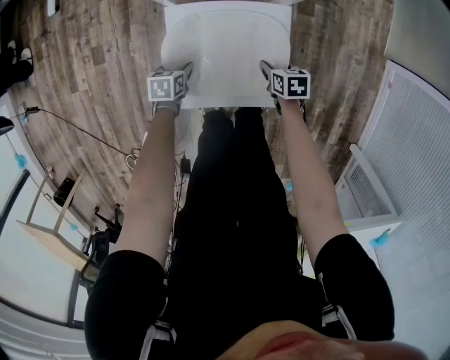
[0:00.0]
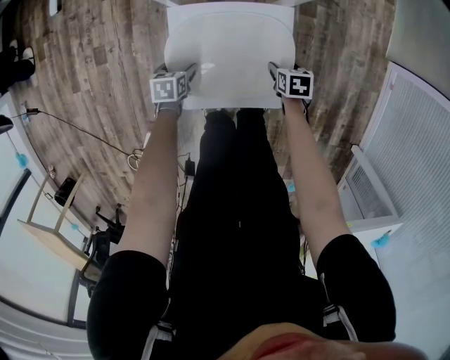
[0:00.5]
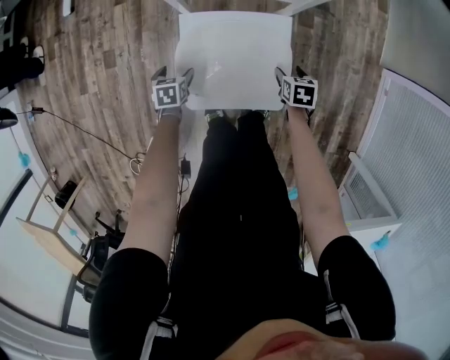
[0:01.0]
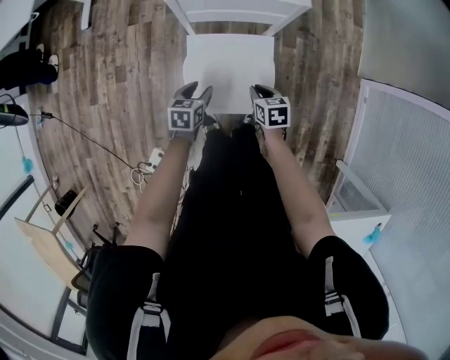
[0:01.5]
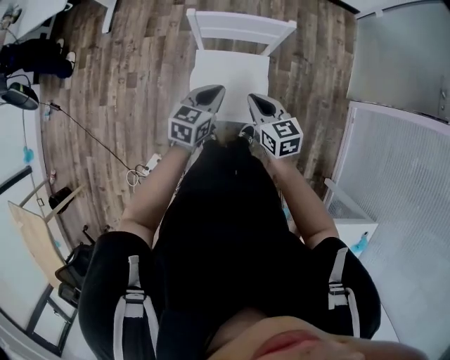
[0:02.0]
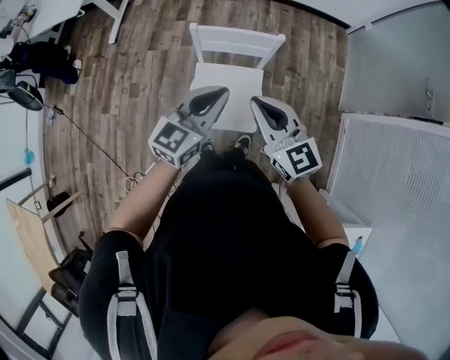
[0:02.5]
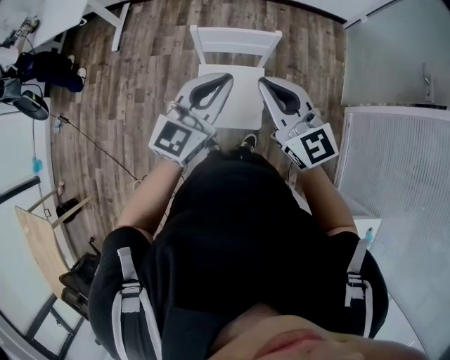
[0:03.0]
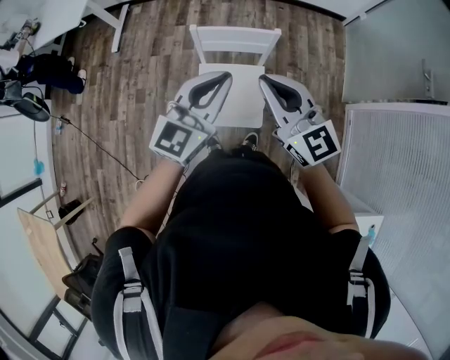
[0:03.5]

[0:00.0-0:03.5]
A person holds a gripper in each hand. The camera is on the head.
0:00.0 to 0:02.0: Both grippers travel together upward, about 50 cm. The left gripper points its fingers some 30 degrees further upward, and closes its fingers, while the right gripper angles its fingers upward, by about 30 degrees, and closes up.
0:02.0 to 0:03.5: Both grippers move upward, approximately 30 cm. The left gripper swivels approximately 30 degrees. Meanwhile the right gripper swivels approximately 40 degrees.

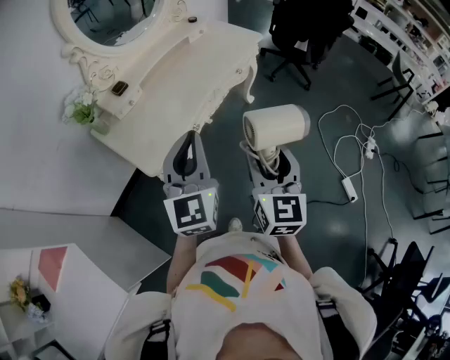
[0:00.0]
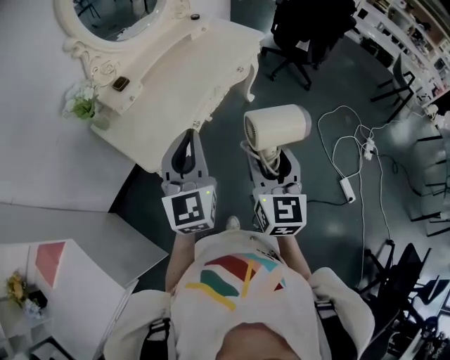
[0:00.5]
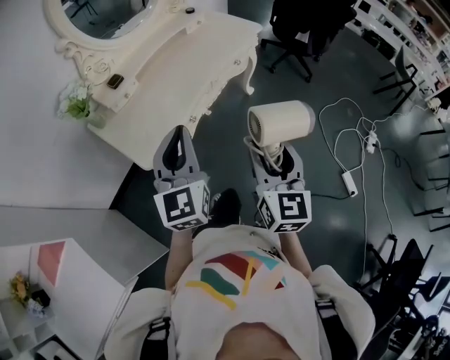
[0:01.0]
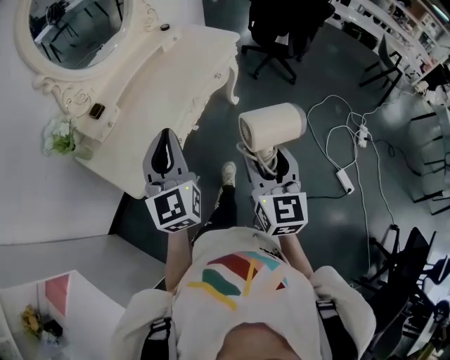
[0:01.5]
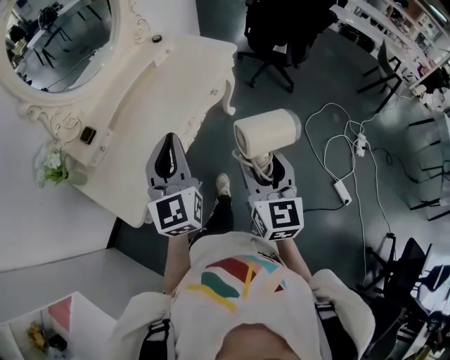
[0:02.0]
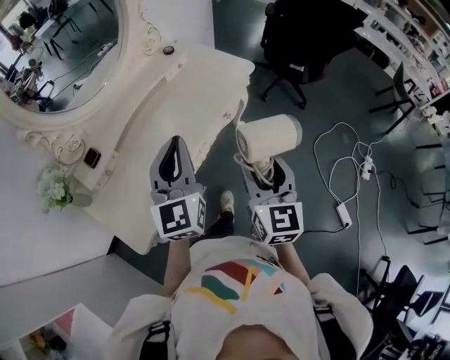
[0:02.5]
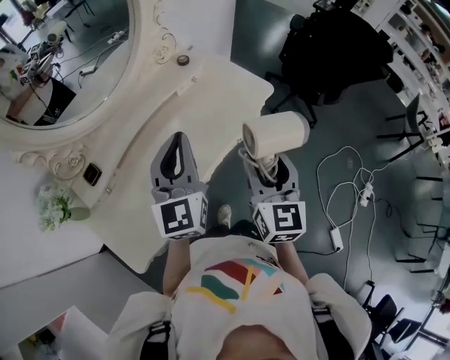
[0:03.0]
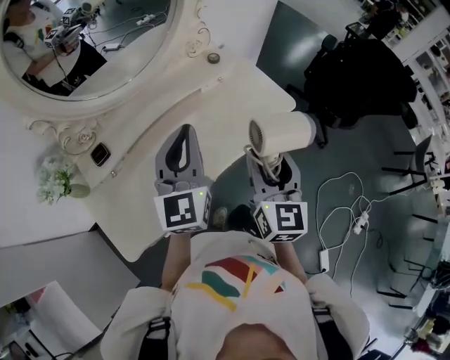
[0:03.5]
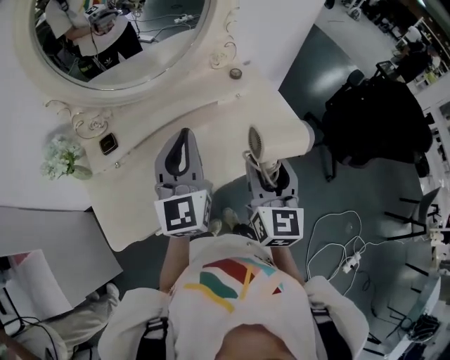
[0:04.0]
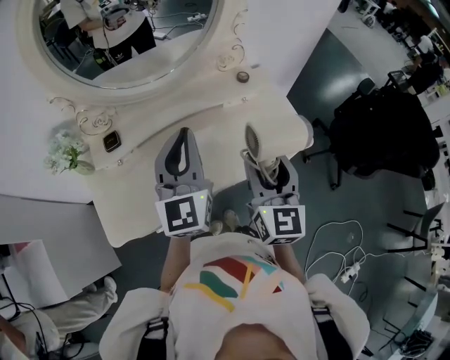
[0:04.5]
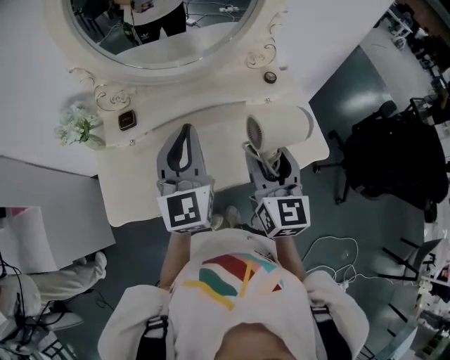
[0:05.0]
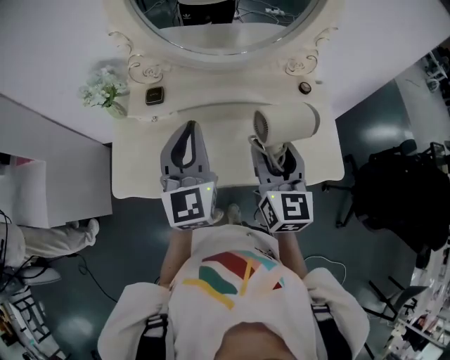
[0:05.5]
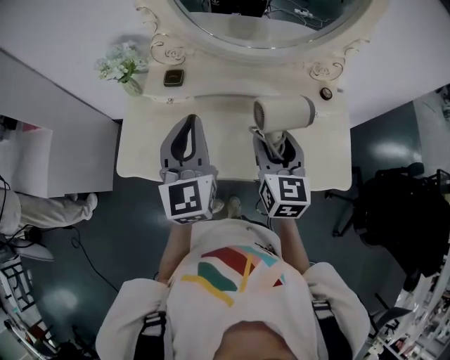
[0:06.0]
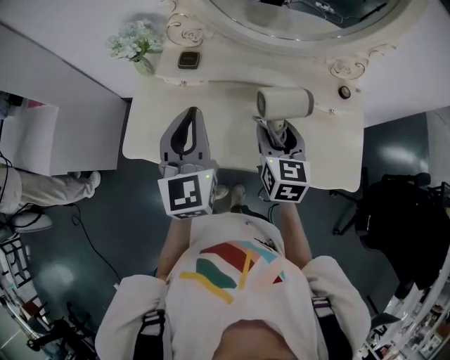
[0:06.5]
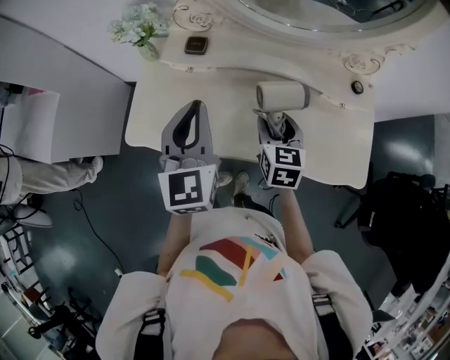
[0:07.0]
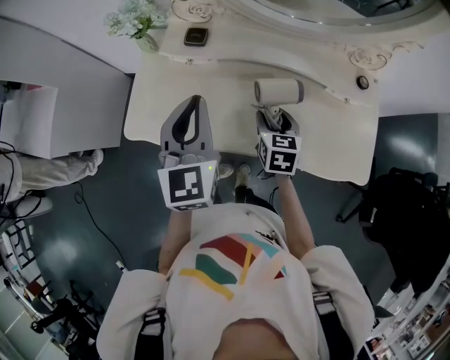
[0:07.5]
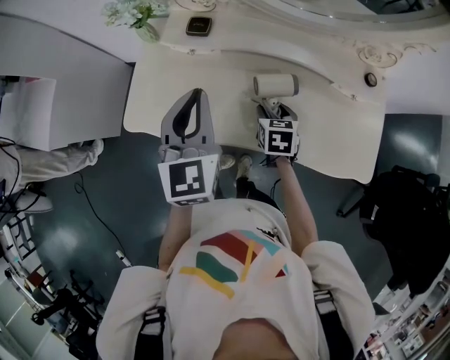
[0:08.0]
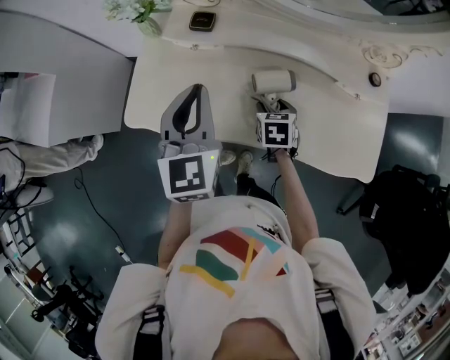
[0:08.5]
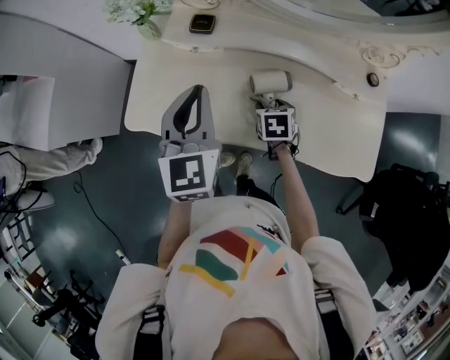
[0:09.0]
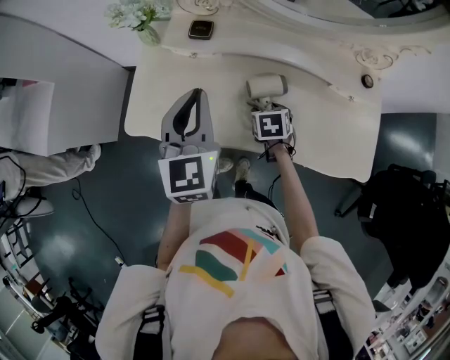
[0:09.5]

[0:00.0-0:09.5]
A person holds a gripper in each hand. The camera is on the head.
0:00.0 to 0:02.0: The right gripper moves forward and to the right, approximately 15 cm, while the left gripper heads forward, covering roughly 15 cm.
0:02.0 to 0:04.0: The left gripper shifts by some 30 cm, and swivels about 30 degrees. Meanwhile the right gripper ends up roughly 40 cm from where it was, and changes its angle by roughly 30 degrees.
0:04.0 to 0:05.5: The left gripper ends up some 10 cm from where it was, and turns by roughly 30 degrees. Meanwhile the right gripper moves approximately 10 cm, and rotates some 30 degrees.
0:05.5 to 0:07.5: The left gripper moves to the left and downward, some 10 cm, while the right gripper shifts about 20 cm downward, and points its fingers some 30 degrees further downward.
0:07.5 to 0:09.5: The right gripper shifts some 10 cm downward, and swivels some 20 degrees.

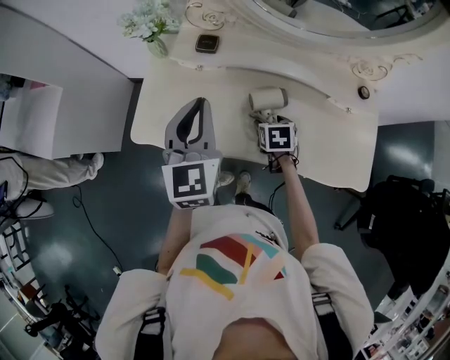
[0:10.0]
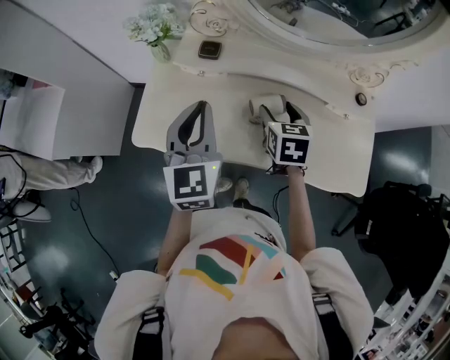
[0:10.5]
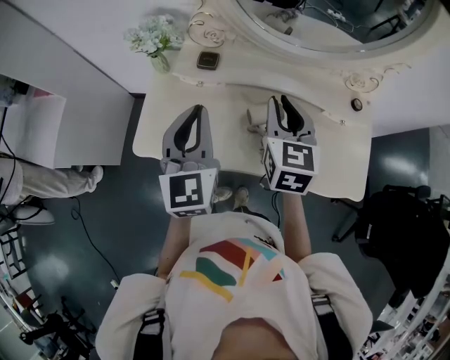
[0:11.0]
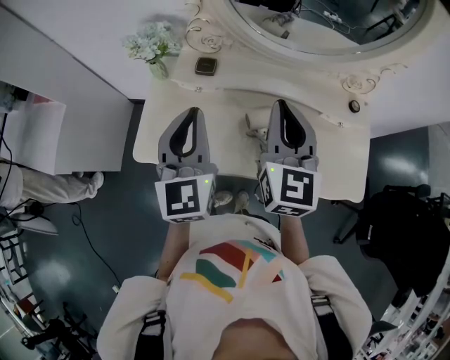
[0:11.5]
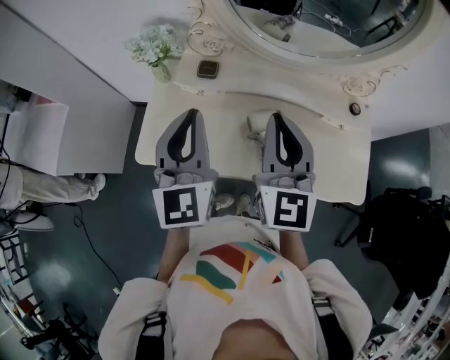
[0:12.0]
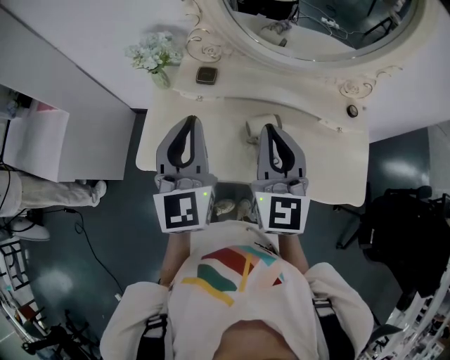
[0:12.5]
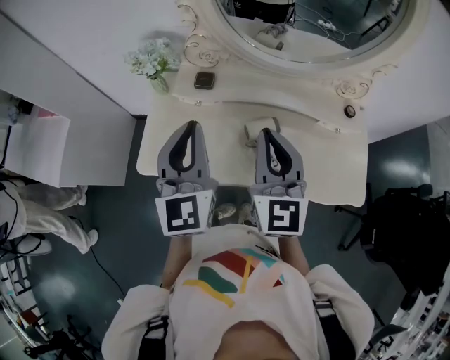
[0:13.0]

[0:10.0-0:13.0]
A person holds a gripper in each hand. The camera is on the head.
0:10.0 to 0:11.5: The right gripper shifts some 35 cm upward, tilts its fingers roughly 60 degrees upward, and closes its fingers, while the left gripper travels upward by approximately 5 cm.
0:11.5 to 0:13.0: The right gripper changes place by roughly 5 cm.

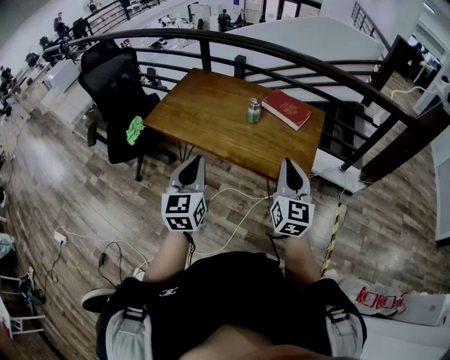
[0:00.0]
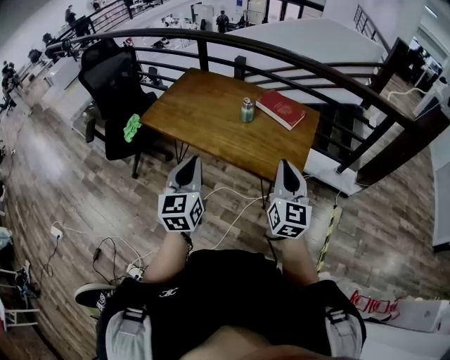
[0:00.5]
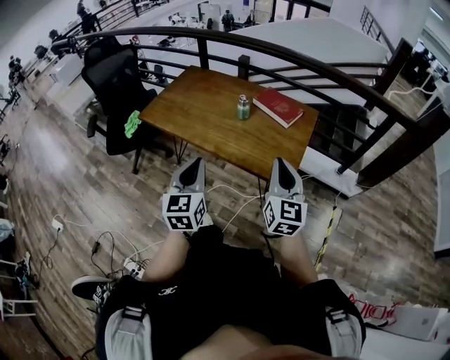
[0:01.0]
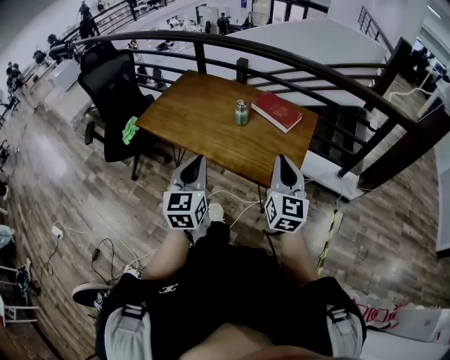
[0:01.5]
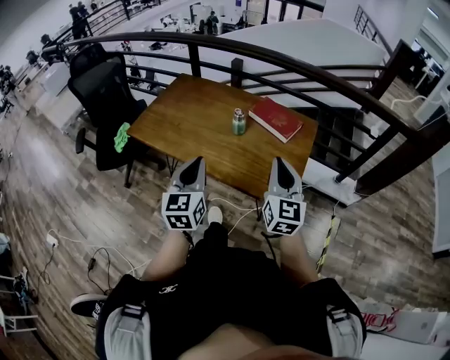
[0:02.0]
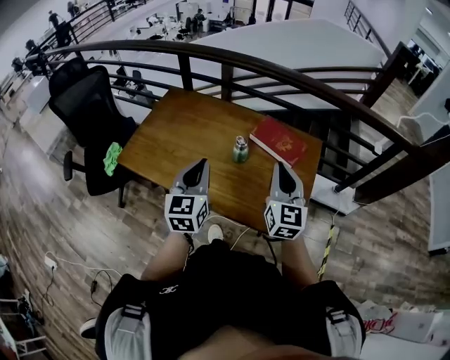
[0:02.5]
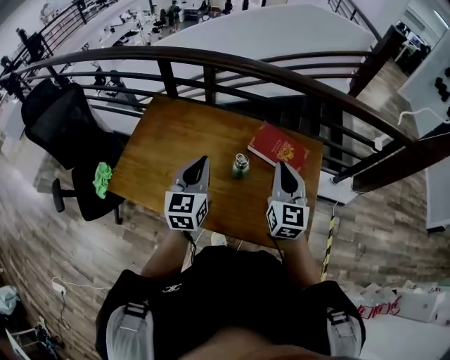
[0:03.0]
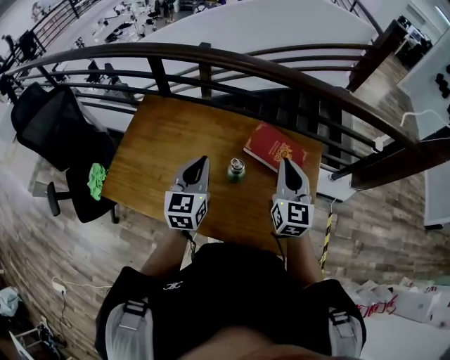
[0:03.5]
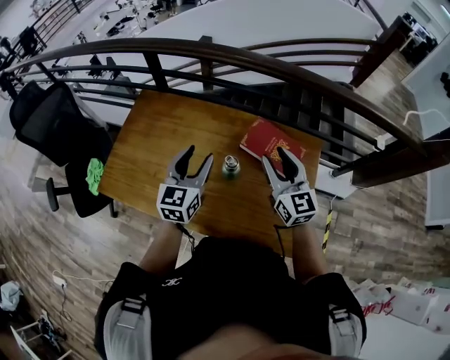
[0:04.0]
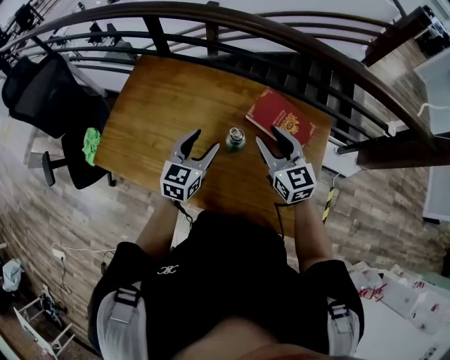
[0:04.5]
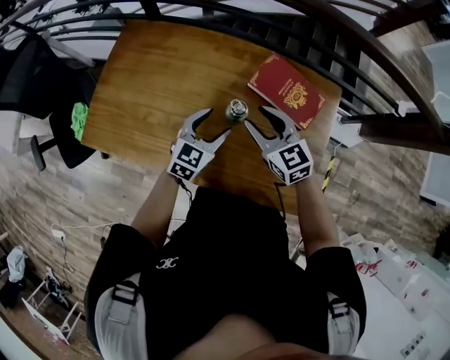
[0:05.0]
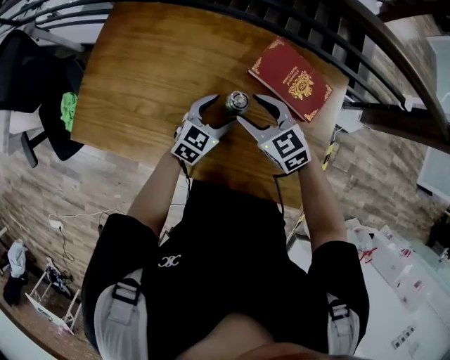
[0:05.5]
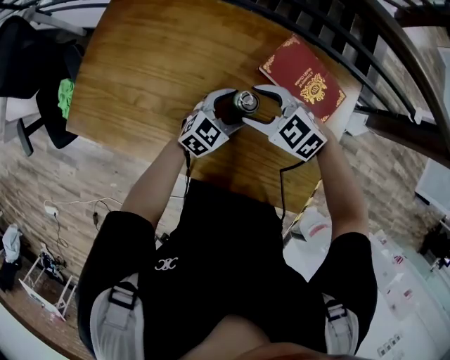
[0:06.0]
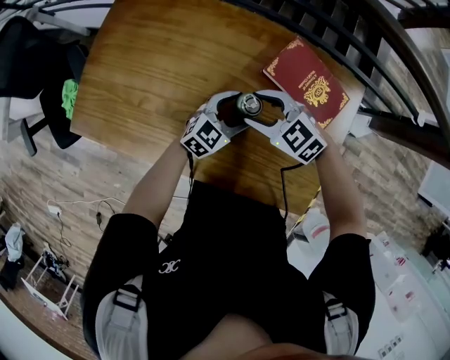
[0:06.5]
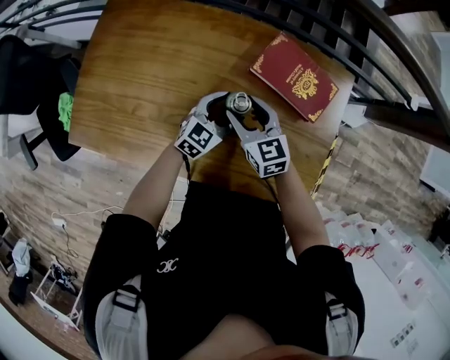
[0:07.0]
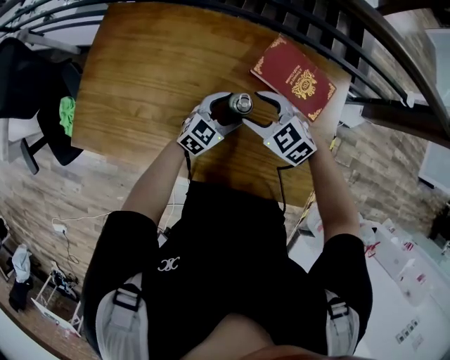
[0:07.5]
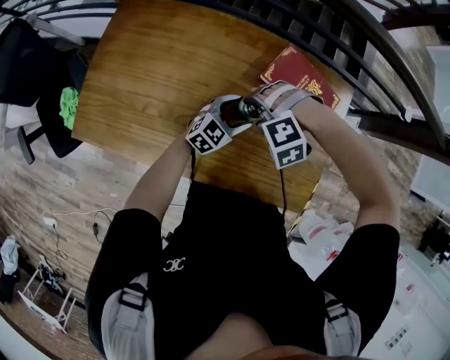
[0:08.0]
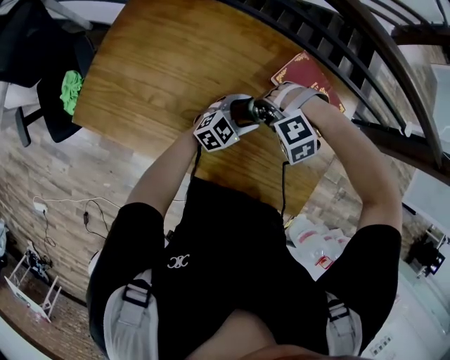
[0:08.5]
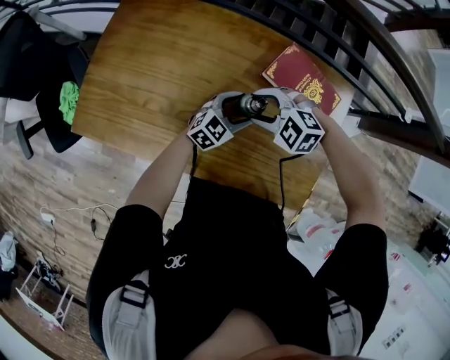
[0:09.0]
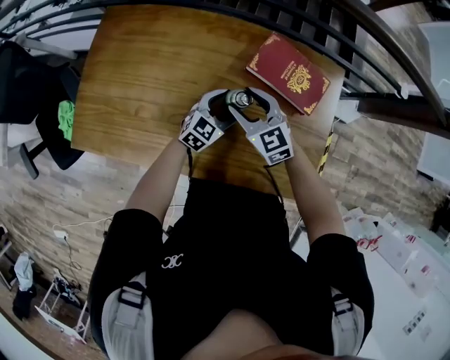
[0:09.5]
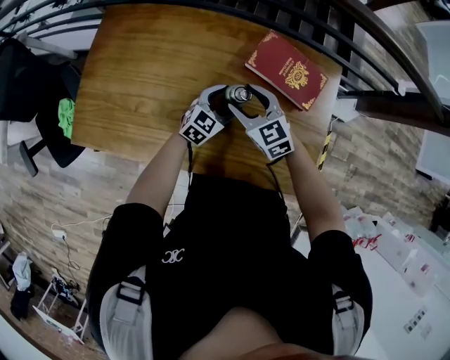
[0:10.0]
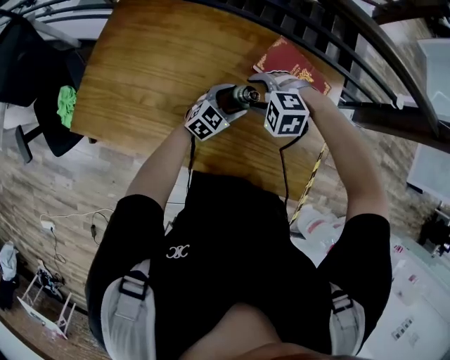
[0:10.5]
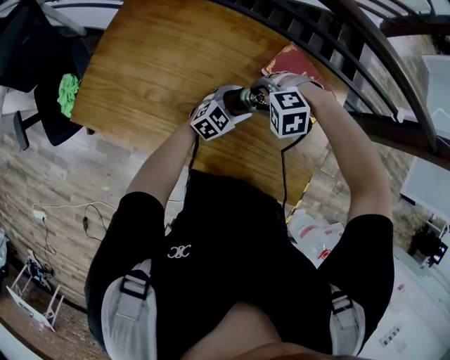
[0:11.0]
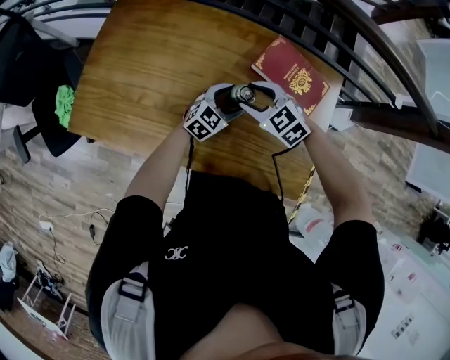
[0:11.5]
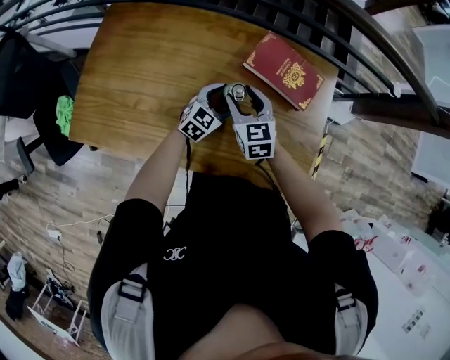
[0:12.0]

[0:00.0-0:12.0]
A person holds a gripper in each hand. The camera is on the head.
0:00.0 to 0:02.0: Both grippers travel together forward and to the right, some 10 cm.
0:02.0 to 0:04.0: Both grippers move forward, approximately 35 cm. The left gripper turns by about 20 degrees, and opens up. The right gripper opens.
0:04.0 to 0:06.0: The left gripper travels downward by roughly 25 cm, changes its angle by approximately 40 degrees, and opens up. Meanwhile the right gripper travels downward and to the left by about 25 cm, angles its fingers downward, by about 40 degrees, and opens.
0:06.0 to 0:08.0: The right gripper rolls counterclockwise, seen from behind, by roughly 50 degrees.
0:08.0 to 0:10.0: The right gripper rolls clockwise, seen from behind, by approximately 70 degrees.
0:10.0 to 0:12.0: The right gripper swivels roughly 20 degrees.
